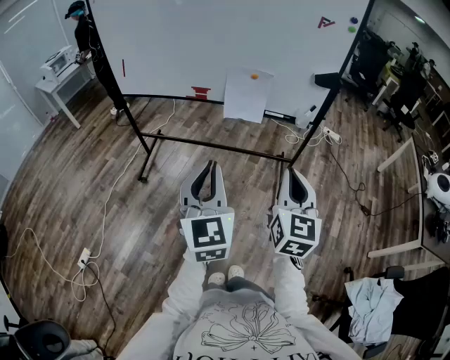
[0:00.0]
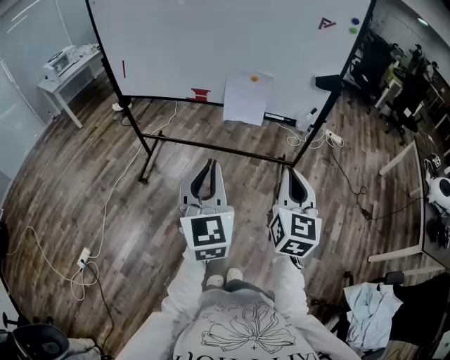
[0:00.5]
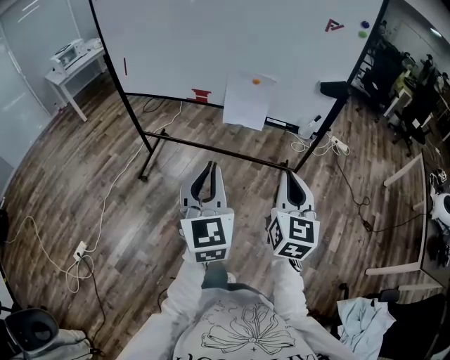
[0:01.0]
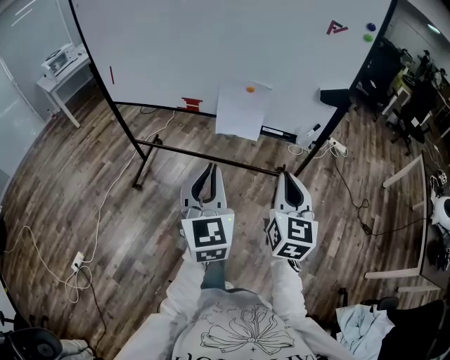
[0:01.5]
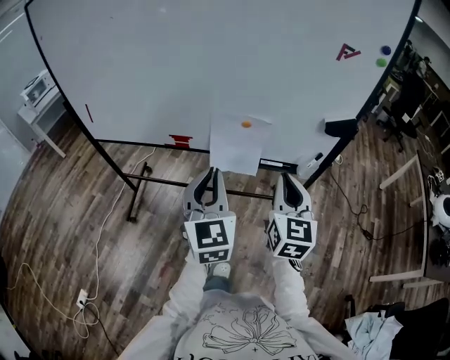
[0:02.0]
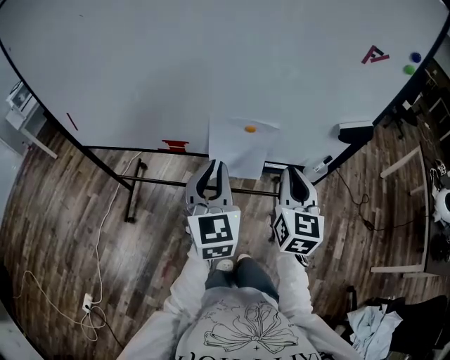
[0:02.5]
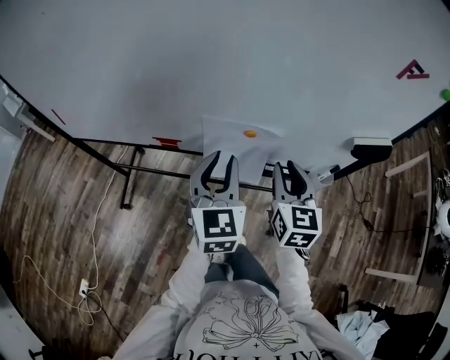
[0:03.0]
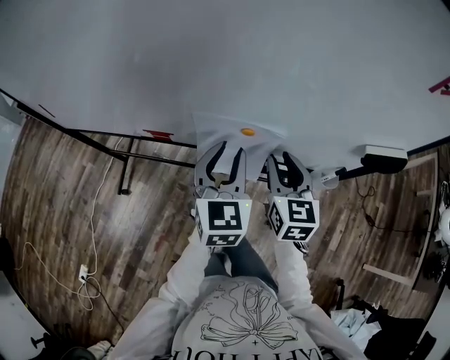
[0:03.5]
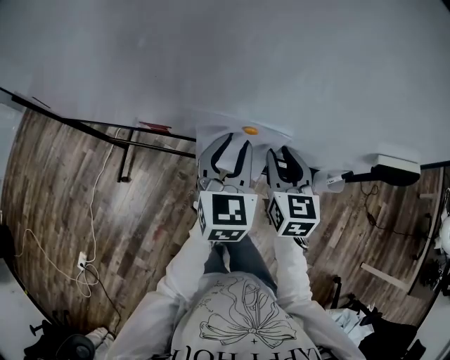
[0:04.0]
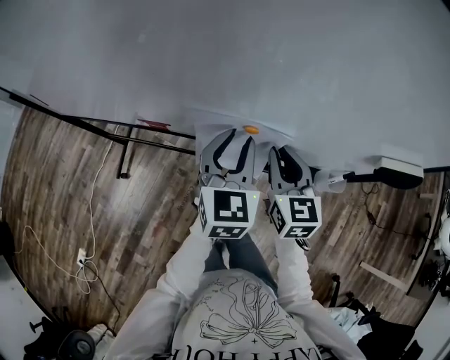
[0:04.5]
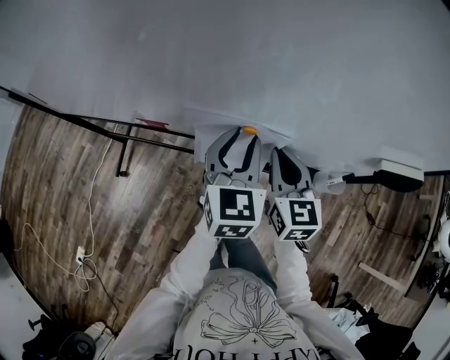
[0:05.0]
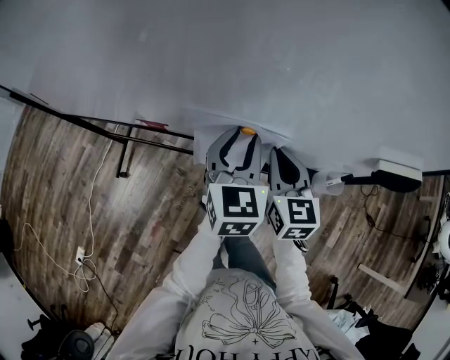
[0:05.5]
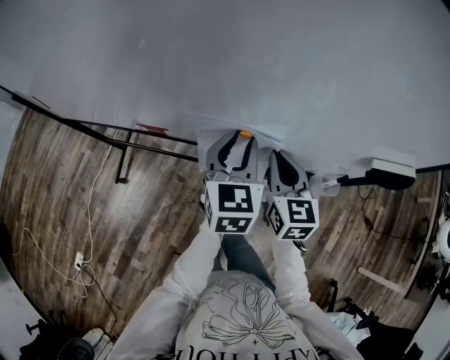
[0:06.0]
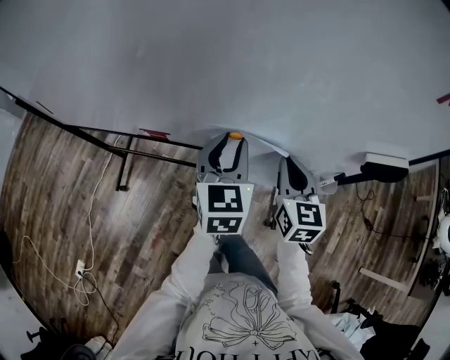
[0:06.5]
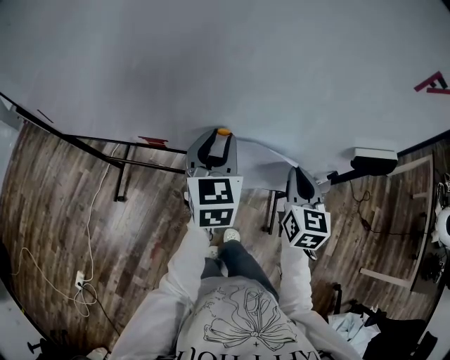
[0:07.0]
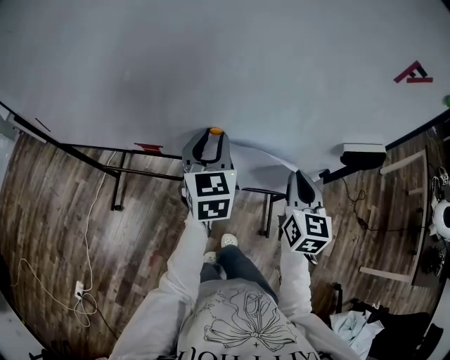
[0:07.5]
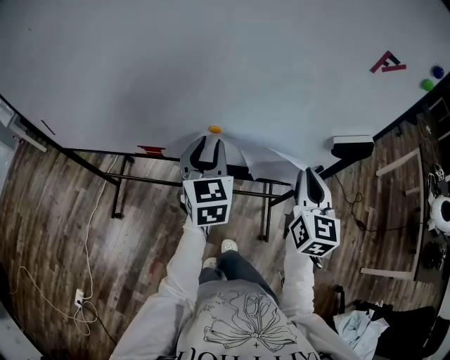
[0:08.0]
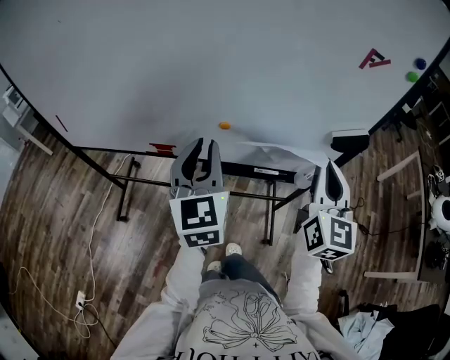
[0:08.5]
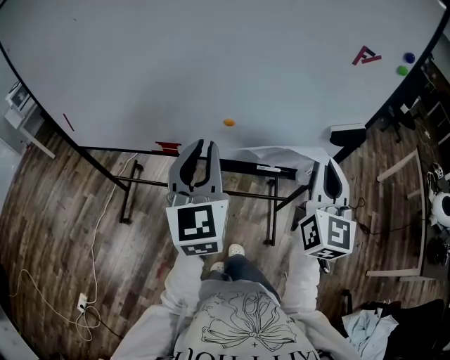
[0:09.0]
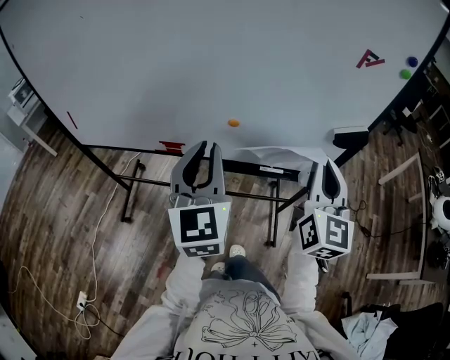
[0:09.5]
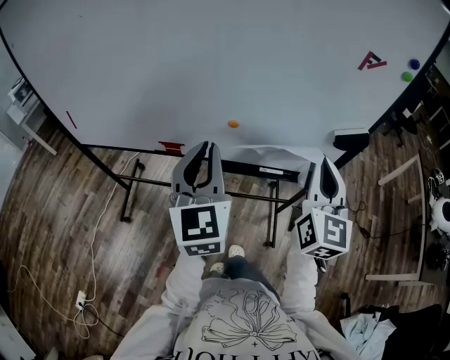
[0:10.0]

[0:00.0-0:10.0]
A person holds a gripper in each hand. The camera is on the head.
0:00.0 to 0:02.0: Both grippers move forward, some 35 cm.
0:02.0 to 0:04.0: The grippers both shift forward and downward by approximately 30 cm. The left gripper opens up. Meanwhile the right gripper turns by about 20 degrees, and opens up.
0:04.0 to 0:06.0: The right gripper closes.
0:06.0 to 0:08.0: The left gripper is displaced upward by roughly 5 cm. Meanwhile the right gripper is displaced upward, to the right and backward by roughly 15 cm, and rotates about 20 degrees.
0:08.0 to 0:10.0: The left gripper travels backward and upward by approximately 15 cm, while the right gripper travels upward and backward by roughly 15 cm.

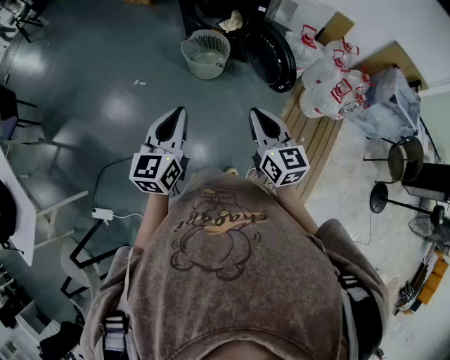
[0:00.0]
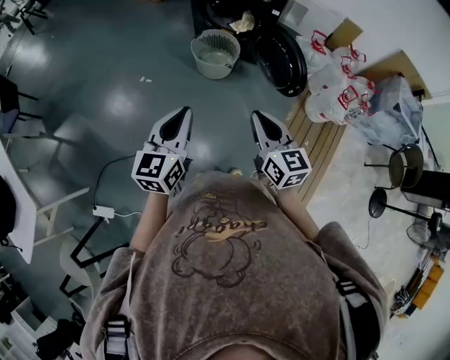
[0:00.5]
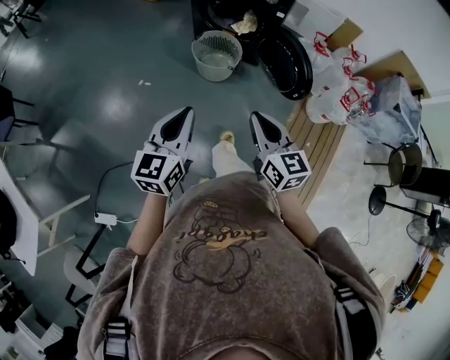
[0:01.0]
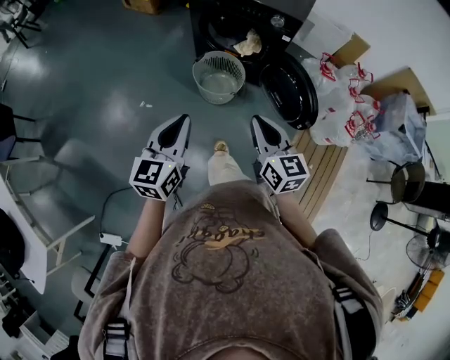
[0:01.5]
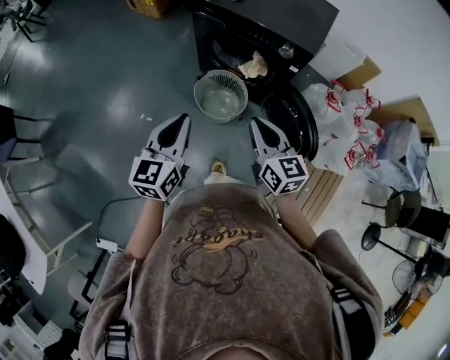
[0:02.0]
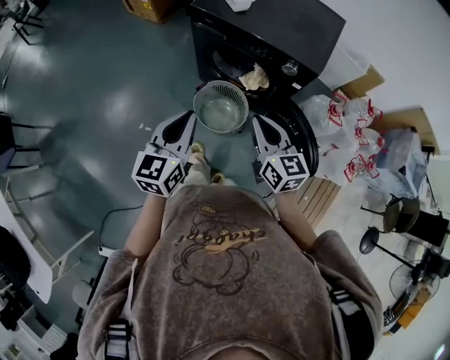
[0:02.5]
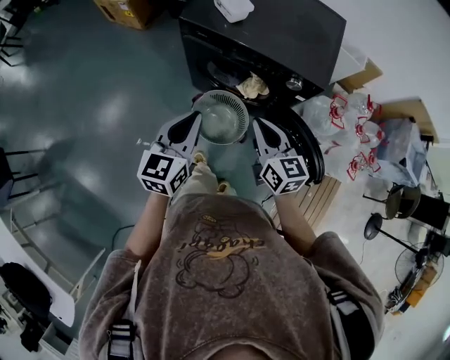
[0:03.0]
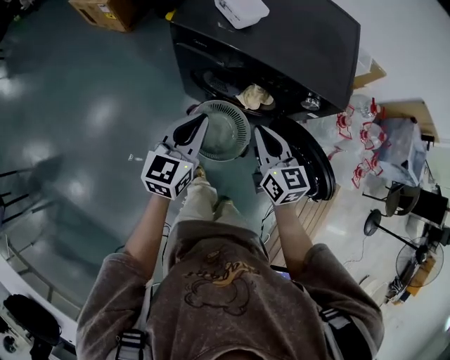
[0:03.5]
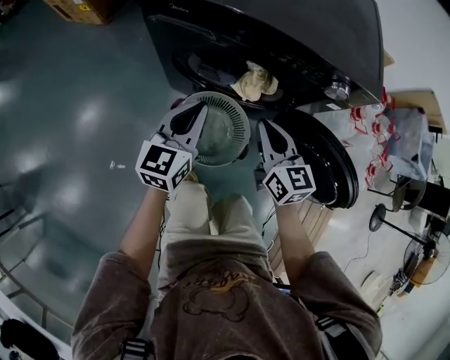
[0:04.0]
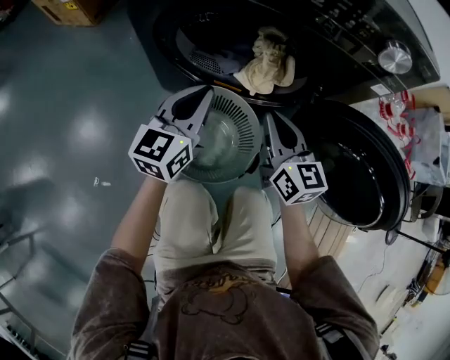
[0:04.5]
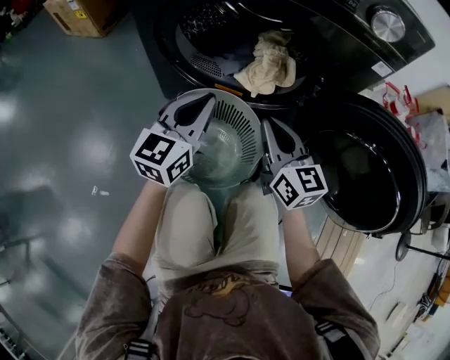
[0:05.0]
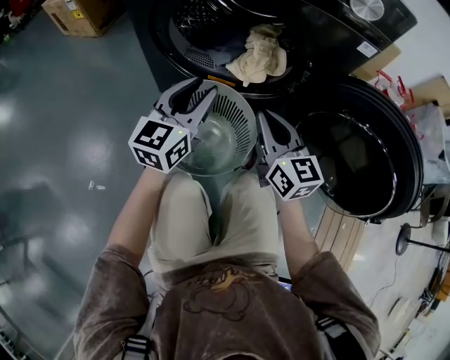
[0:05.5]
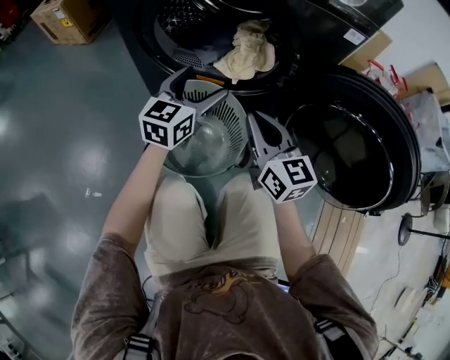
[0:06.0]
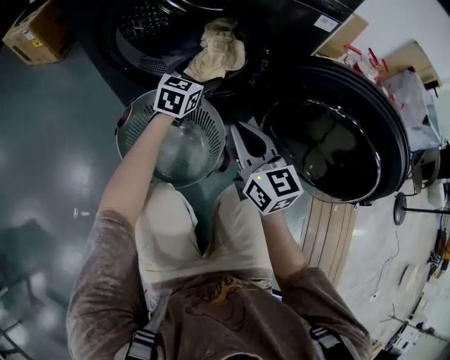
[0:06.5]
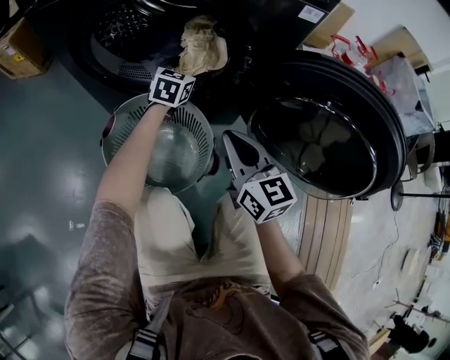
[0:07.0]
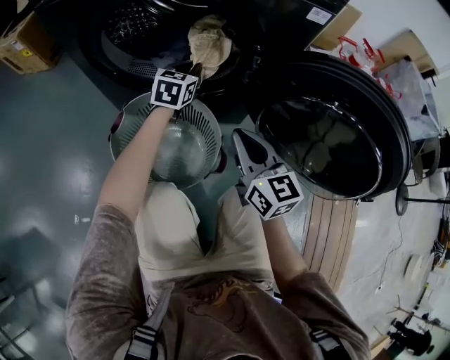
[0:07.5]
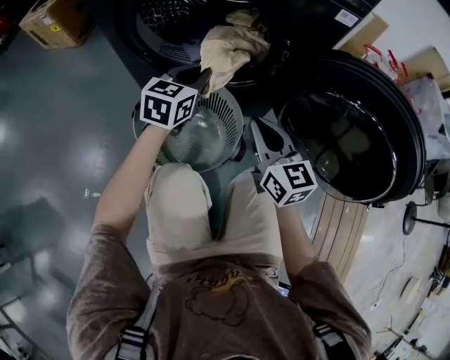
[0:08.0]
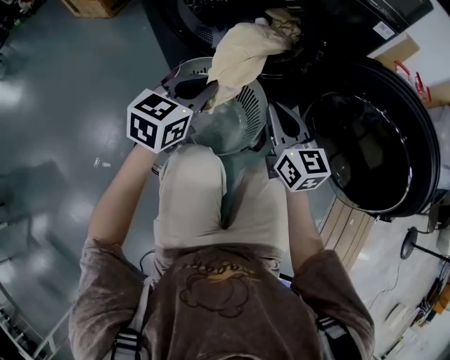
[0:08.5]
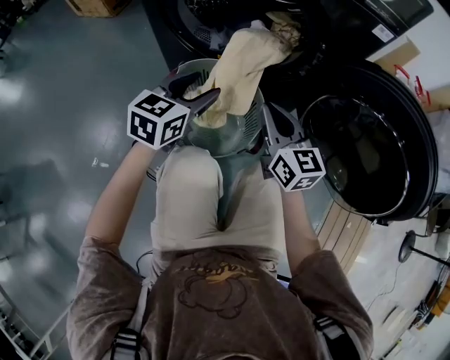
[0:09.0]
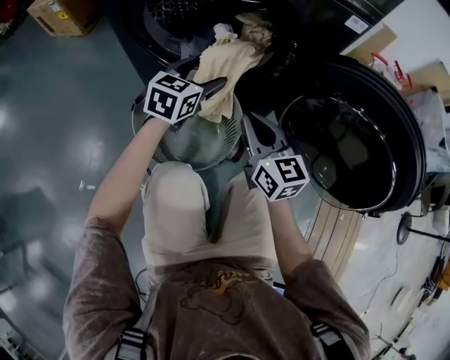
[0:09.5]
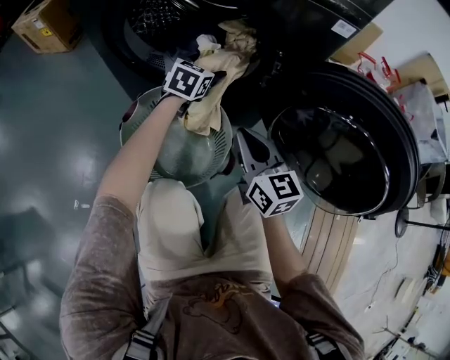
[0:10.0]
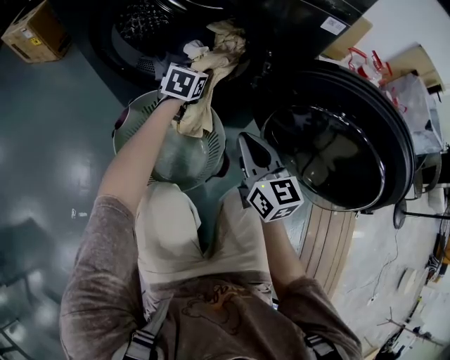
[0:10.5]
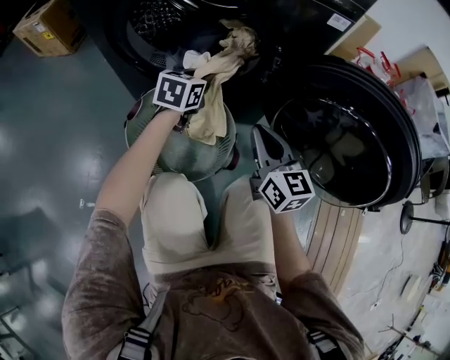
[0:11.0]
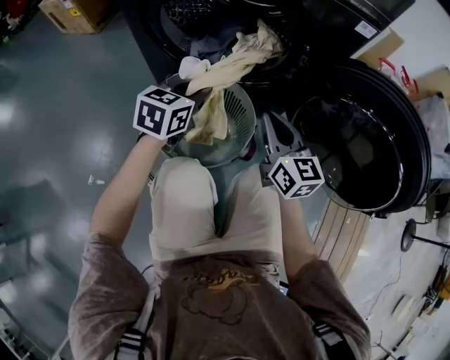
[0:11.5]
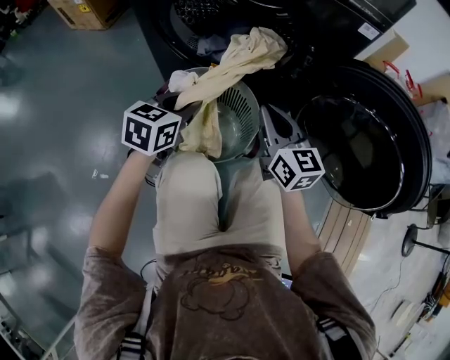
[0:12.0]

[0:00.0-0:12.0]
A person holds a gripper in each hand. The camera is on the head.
0:00.0 to 0:02.0: The two grippers go approximately 35 cm forward.
0:02.0 to 0:04.0: The grippers both shift forward and downward by about 40 cm. The left gripper turns by roughly 20 degrees.
0:04.0 to 0:06.0: The left gripper is displaced downward and to the right by some 25 cm, and opens up. Meanwhile the right gripper moves downward, some 20 cm.
0:06.0 to 0:08.0: The left gripper reaches approximately 15 cm forward, then returns, and closes; the right gripper shifts by roughly 5 cm.
0:08.0 to 0:10.0: The left gripper goes approximately 15 cm forward and downward, and opens.
0:10.0 to 0:12.0: The left gripper shifts roughly 25 cm backward and to the left, and closes.

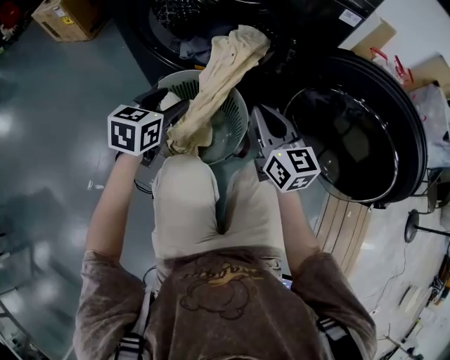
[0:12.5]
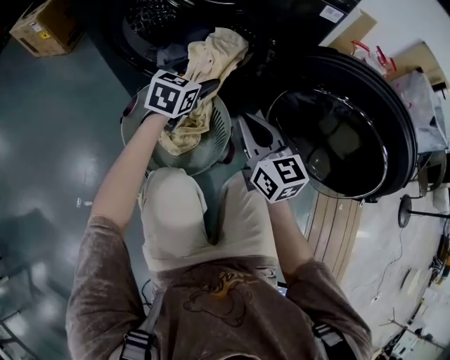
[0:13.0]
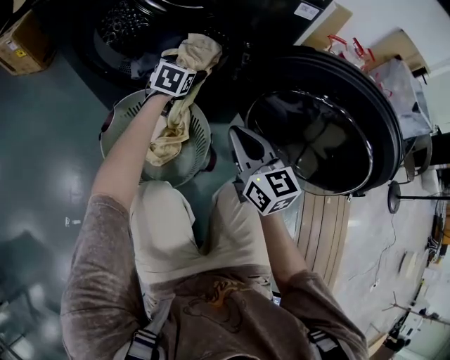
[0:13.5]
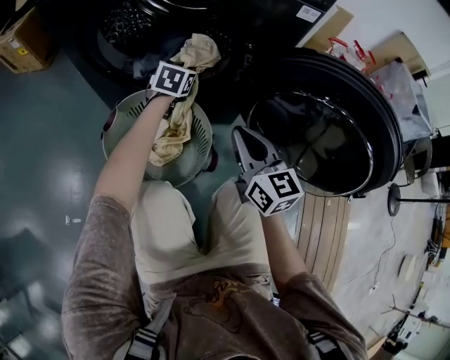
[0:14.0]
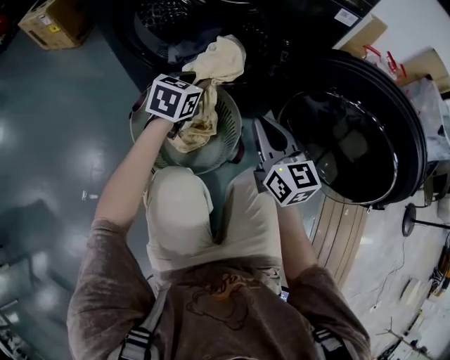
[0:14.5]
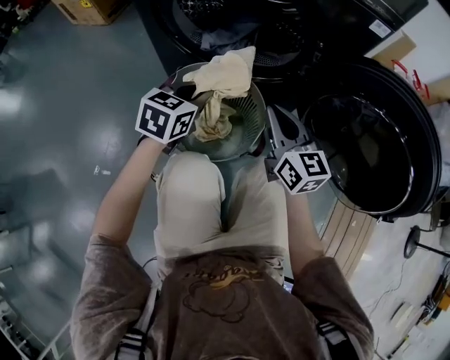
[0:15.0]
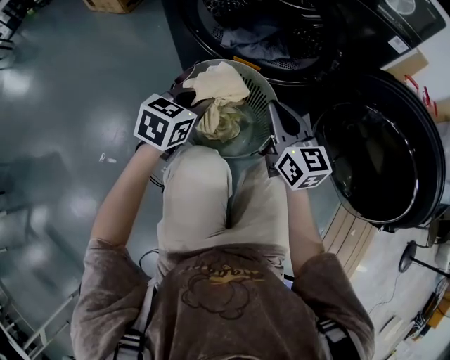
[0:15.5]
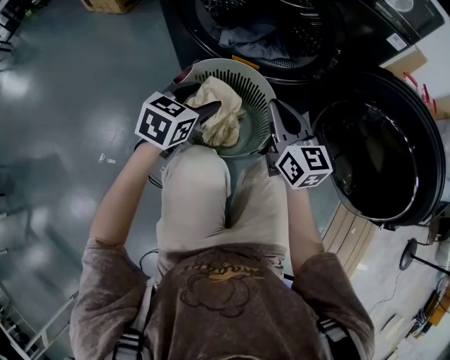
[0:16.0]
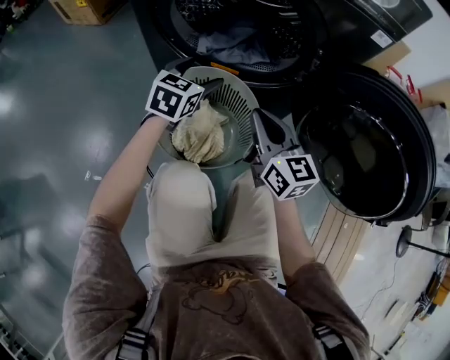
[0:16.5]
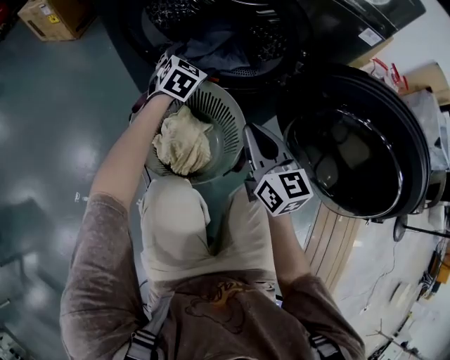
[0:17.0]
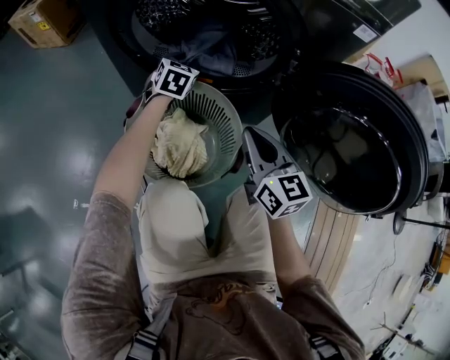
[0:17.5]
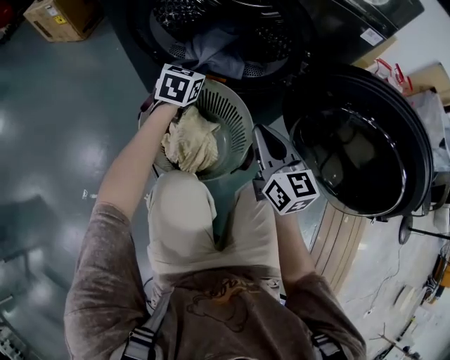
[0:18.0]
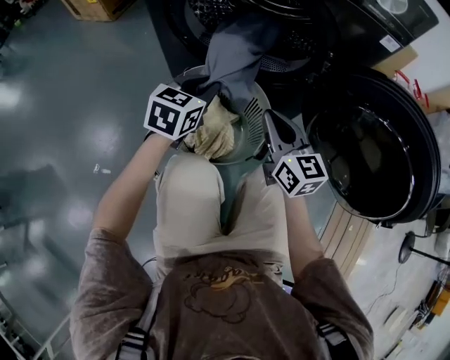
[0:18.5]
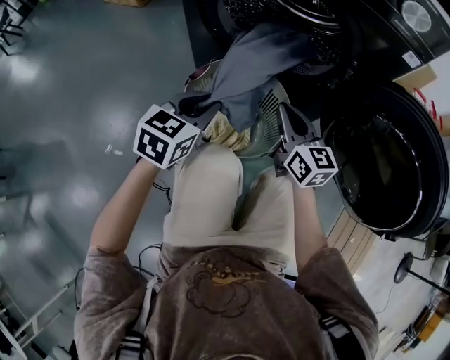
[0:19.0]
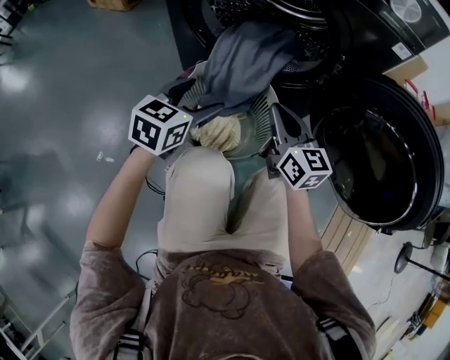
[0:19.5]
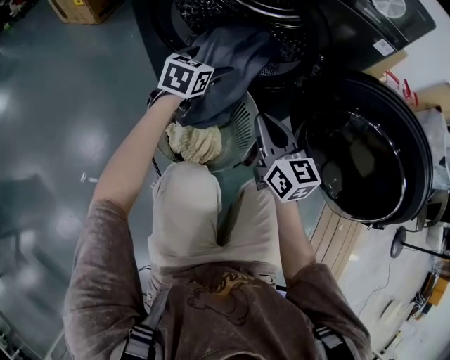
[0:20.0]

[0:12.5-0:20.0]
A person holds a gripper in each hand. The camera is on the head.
0:12.5 to 0:14.5: The left gripper moves forward and to the right, approximately 15 cm, and closes its fingers.
0:14.5 to 0:16.5: Both grippers travel together to the left, roughly 5 cm. The left gripper travels backward and back again, roughly 15 cm each way, and opens.
0:16.5 to 0:18.0: The left gripper shifts approximately 10 cm forward, and closes up.
0:18.0 to 0:20.0: The left gripper moves roughly 25 cm backward and comes back, and opens its fingers.
